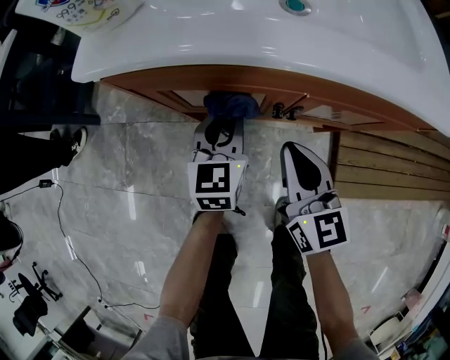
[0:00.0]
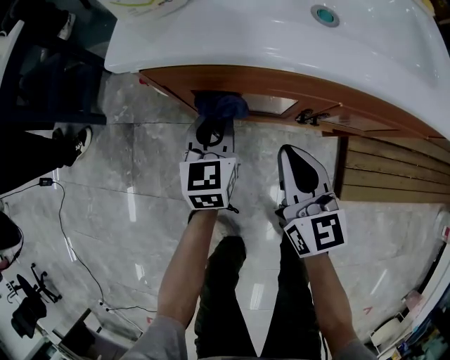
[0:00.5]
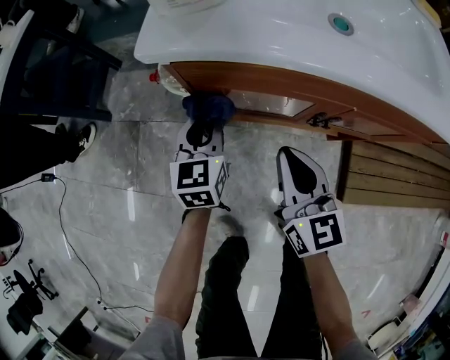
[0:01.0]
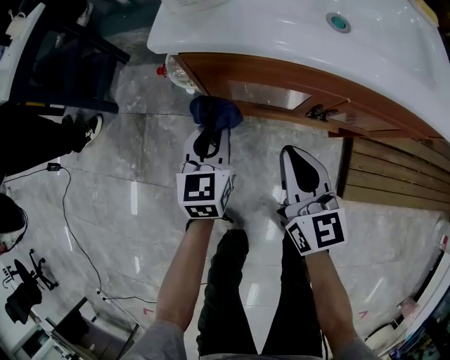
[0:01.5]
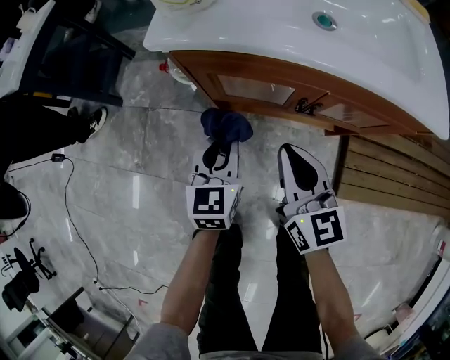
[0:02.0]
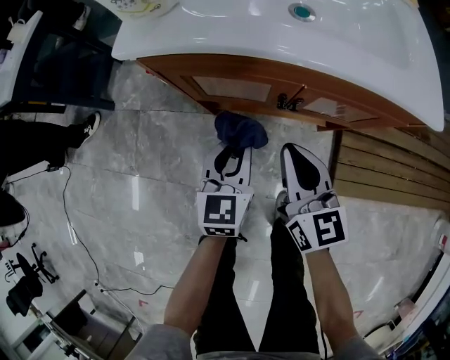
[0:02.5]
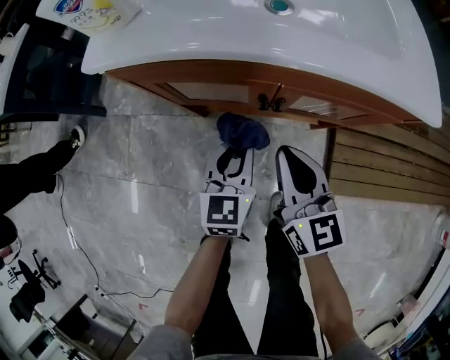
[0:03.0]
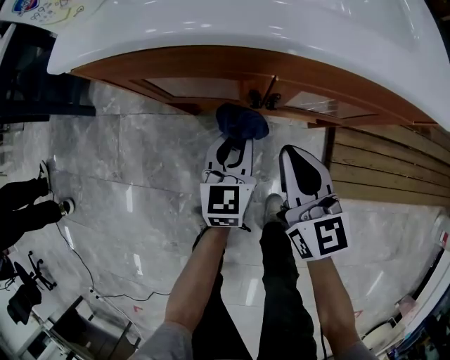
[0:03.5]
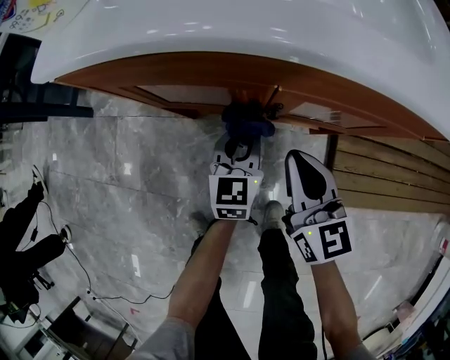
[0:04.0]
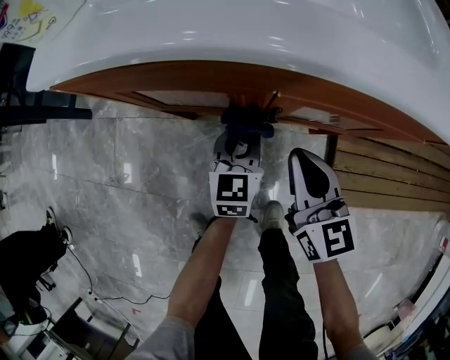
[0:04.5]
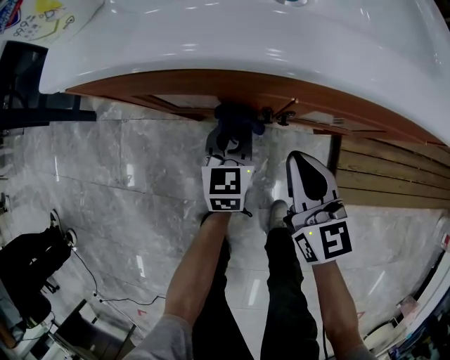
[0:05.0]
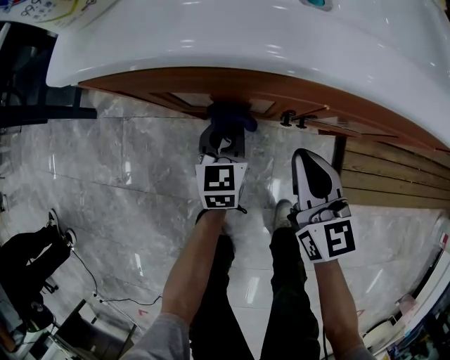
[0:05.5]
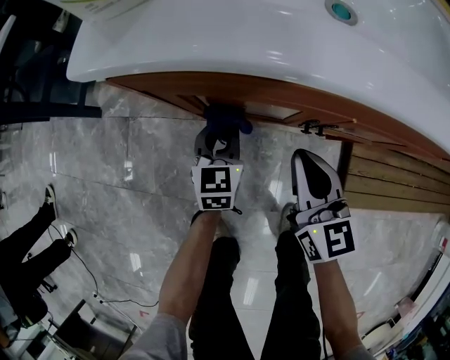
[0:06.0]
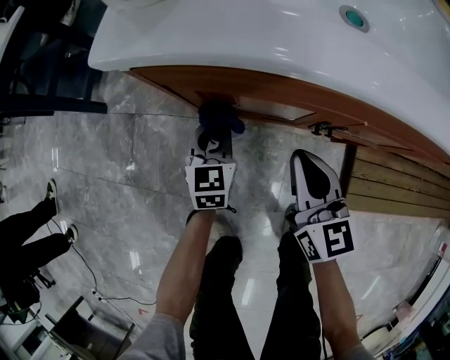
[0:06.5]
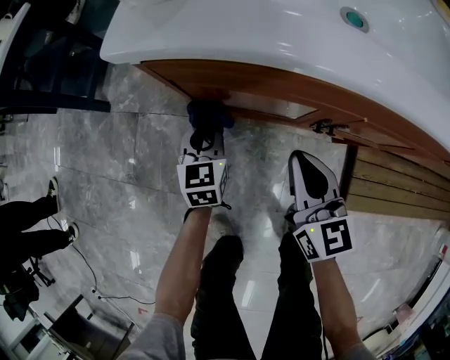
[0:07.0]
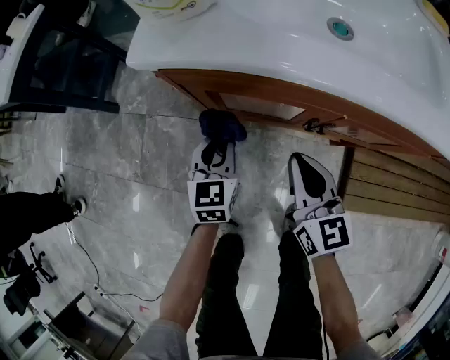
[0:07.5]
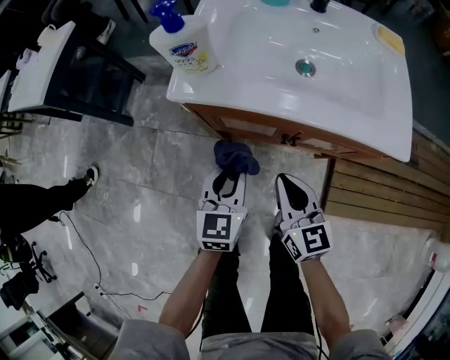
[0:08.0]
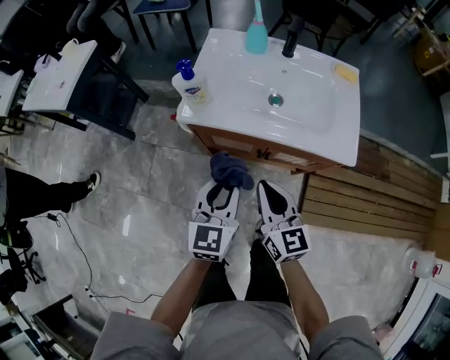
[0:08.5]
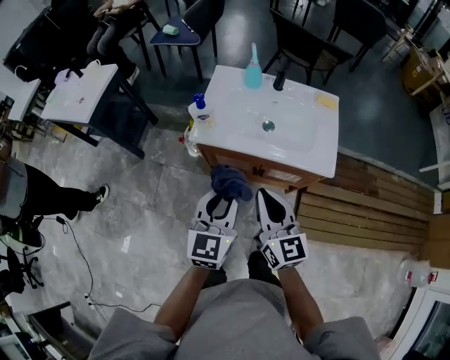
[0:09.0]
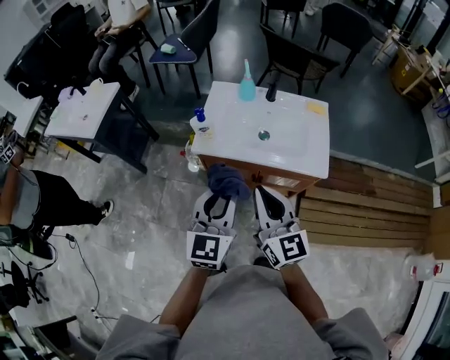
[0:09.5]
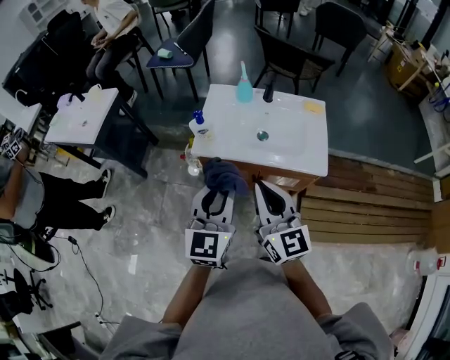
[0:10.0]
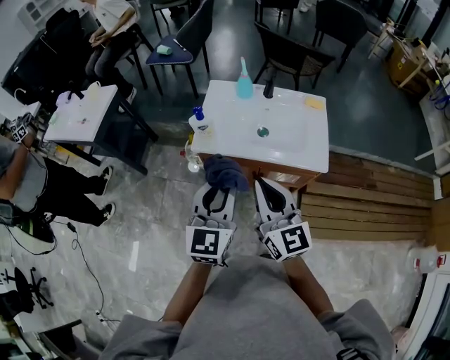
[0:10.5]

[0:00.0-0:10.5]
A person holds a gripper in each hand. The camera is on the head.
0:00.0 to 0:02.0: The right gripper shifts roughly 10 cm to the left and upward. The left gripper moves backward and to the left, about 10 cm.
0:02.0 to 0:04.0: The two grippers go some 20 cm to the right and downward.
0:04.0 to 0:06.5: The right gripper heads to the left, covering roughly 10 cm, while the left gripper moves to the left, roughly 20 cm.
0:06.5 to 0:08.5: The two grippers go roughly 35 cm upward.
0:08.5 to 0:10.5: Both grippers move upward, roughly 20 cm.

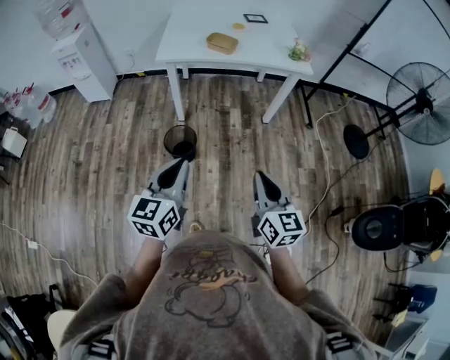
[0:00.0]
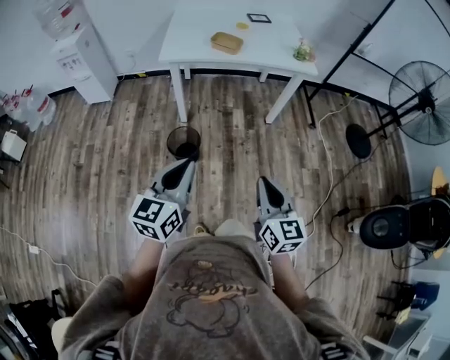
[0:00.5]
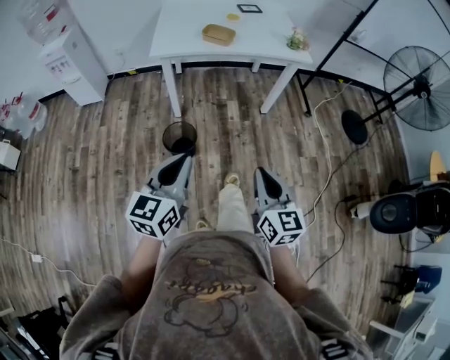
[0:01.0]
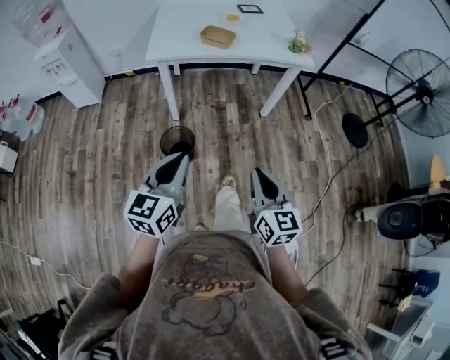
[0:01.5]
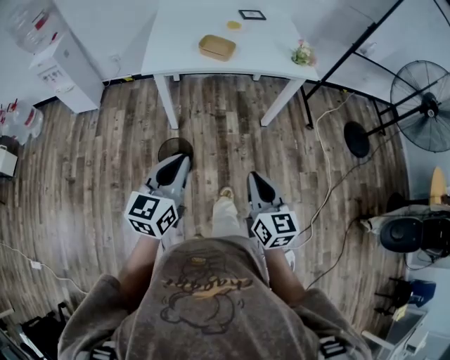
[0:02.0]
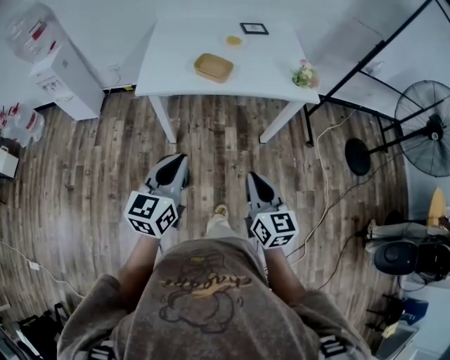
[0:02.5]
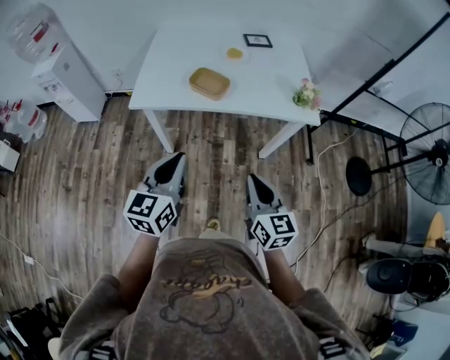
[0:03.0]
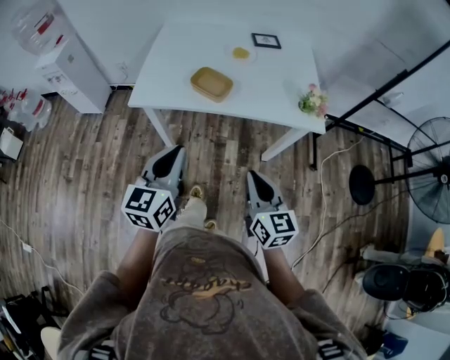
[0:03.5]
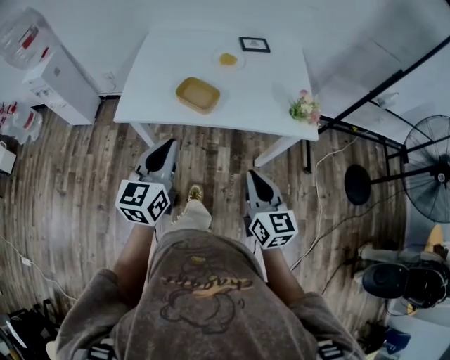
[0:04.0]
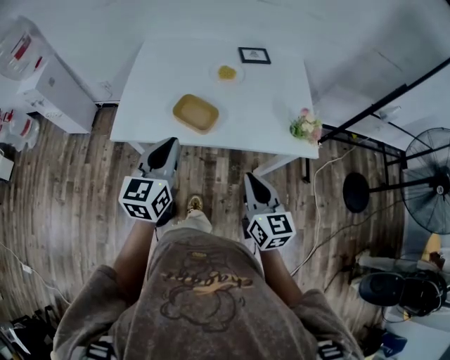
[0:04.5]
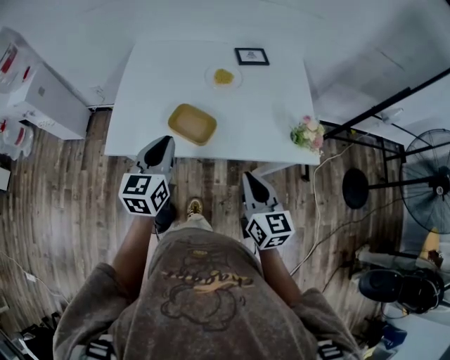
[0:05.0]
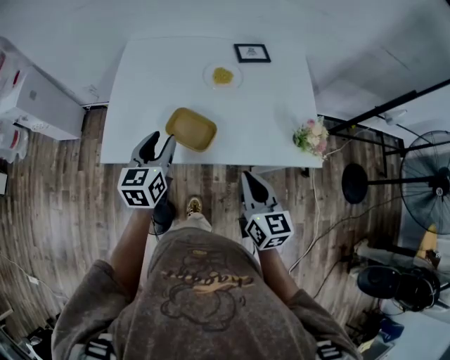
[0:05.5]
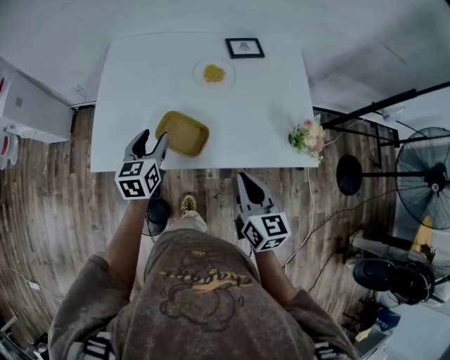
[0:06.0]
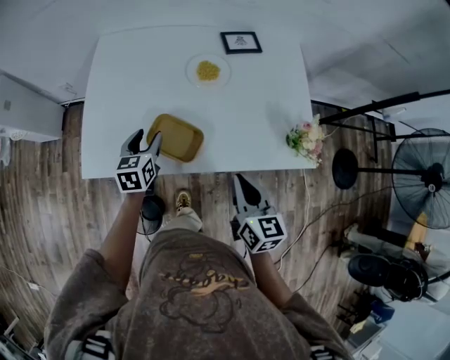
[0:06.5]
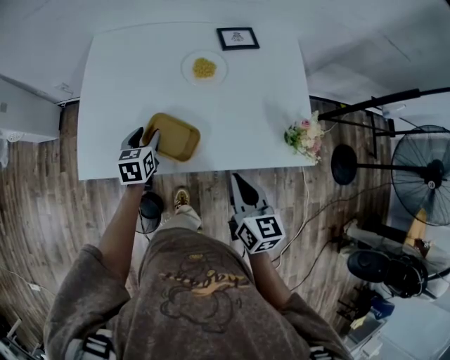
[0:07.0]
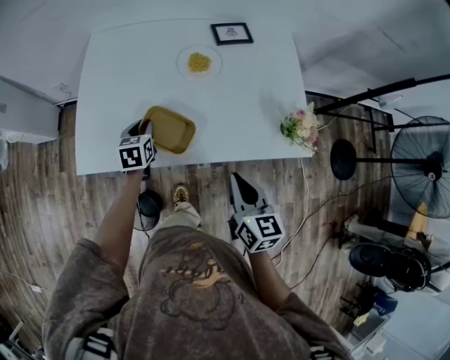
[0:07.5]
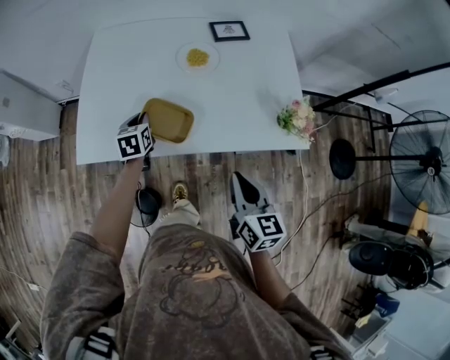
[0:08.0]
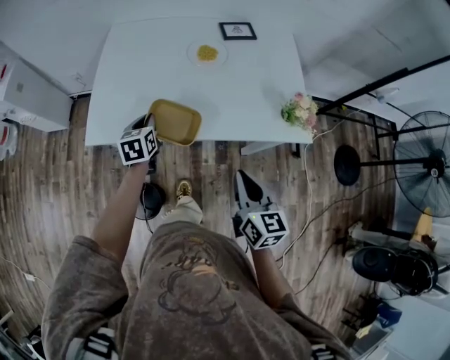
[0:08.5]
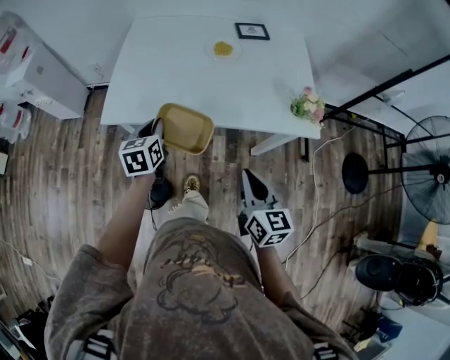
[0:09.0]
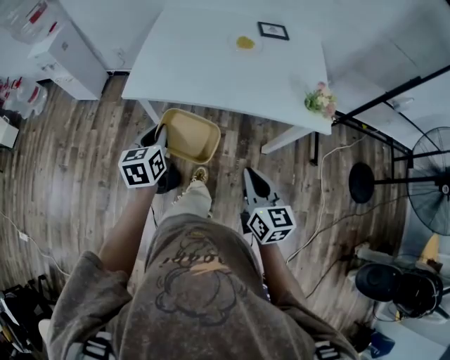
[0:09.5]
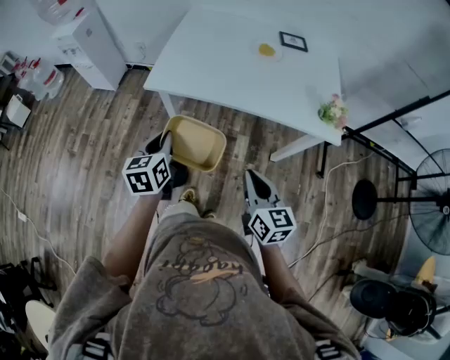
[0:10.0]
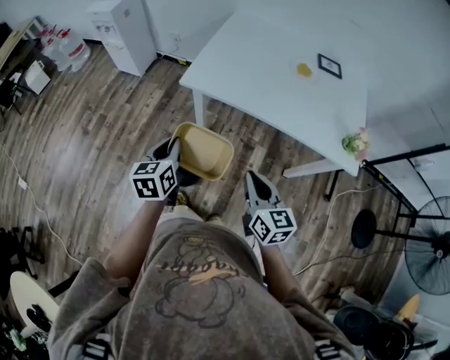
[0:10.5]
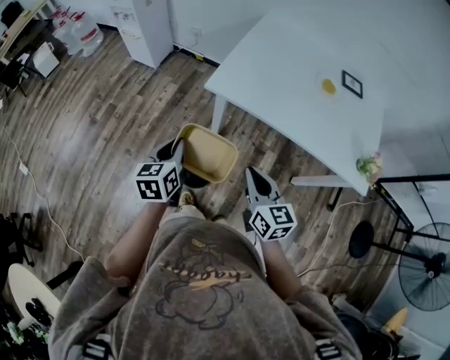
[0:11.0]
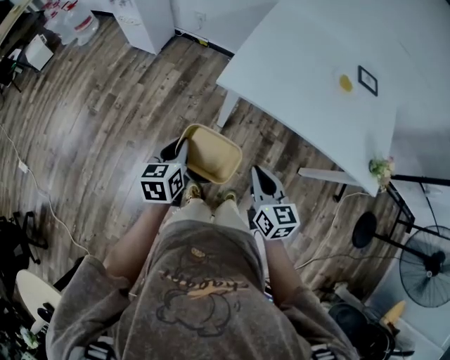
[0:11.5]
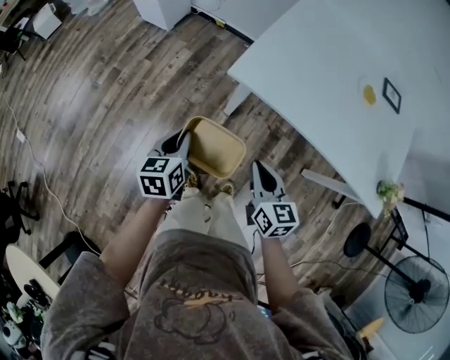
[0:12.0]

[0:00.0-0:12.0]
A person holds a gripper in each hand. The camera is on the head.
0:00.0 to 0:02.0: Both grippers move forward, roughly 15 cm.
0:02.0 to 0:04.0: Both grippers move forward, about 35 cm.
0:04.0 to 0:06.0: The left gripper goes about 35 cm forward and downward, and opens up; the right gripper travels forward by some 25 cm.
0:06.0 to 0:08.0: The left gripper moves downward, about 10 cm, and closes up; the right gripper shifts by some 5 cm.
0:08.0 to 0:10.0: The right gripper travels backward and to the left by roughly 25 cm. Meanwhile the left gripper heads backward, covering roughly 35 cm.
0:10.0 to 0:12.0: The right gripper travels to the left, forward and downward by roughly 35 cm, and swivels approximately 20 degrees; the left gripper heads to the left, downward and forward, covering roughly 25 cm.

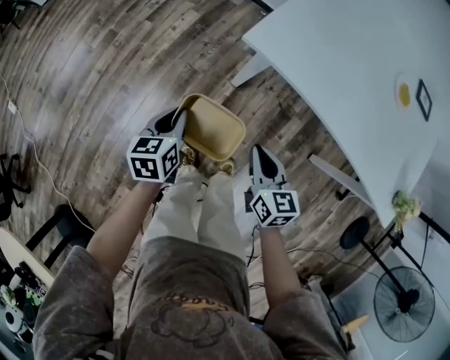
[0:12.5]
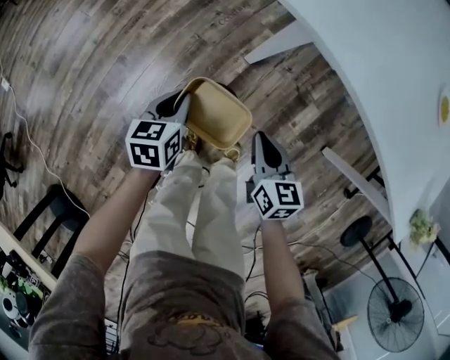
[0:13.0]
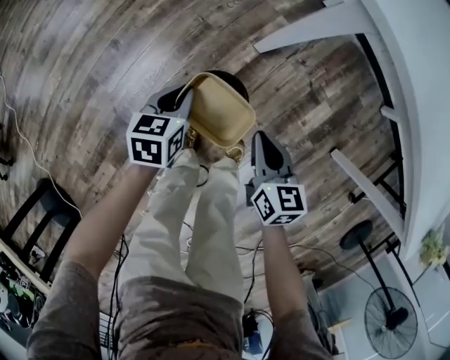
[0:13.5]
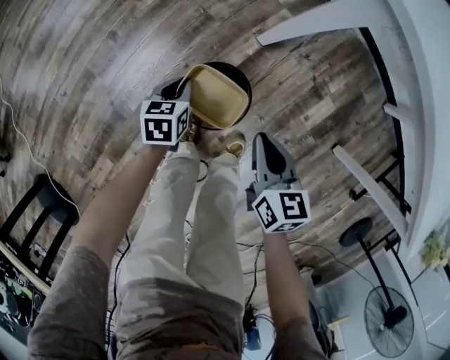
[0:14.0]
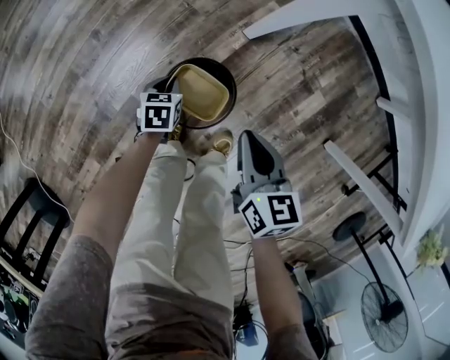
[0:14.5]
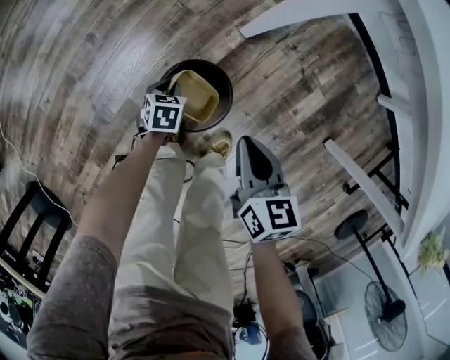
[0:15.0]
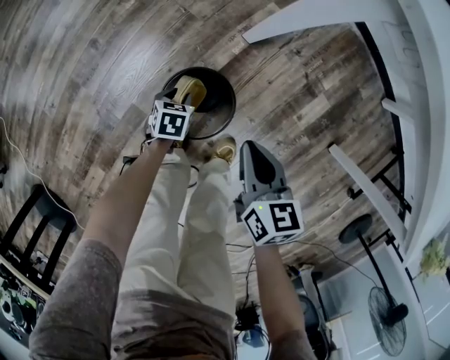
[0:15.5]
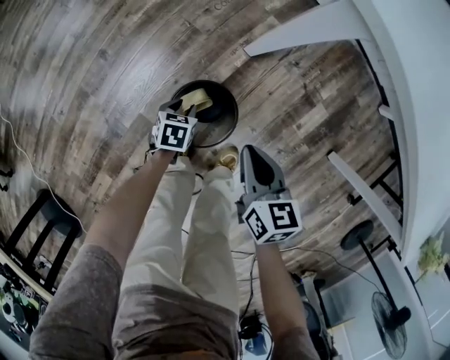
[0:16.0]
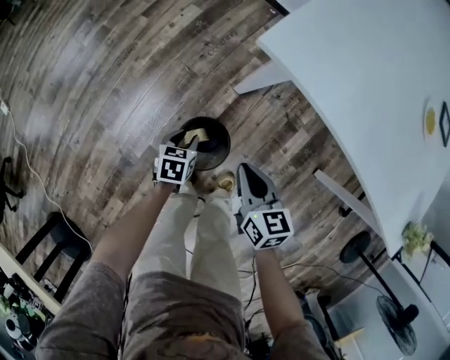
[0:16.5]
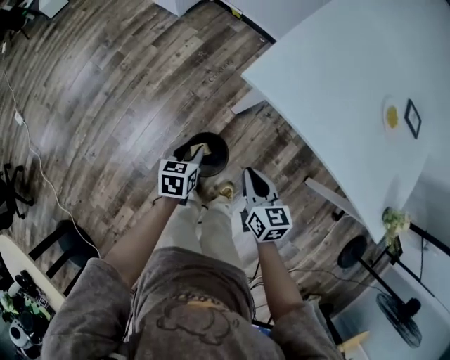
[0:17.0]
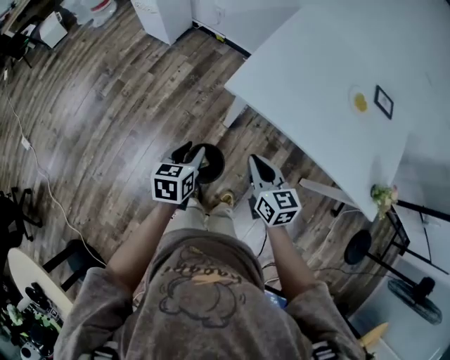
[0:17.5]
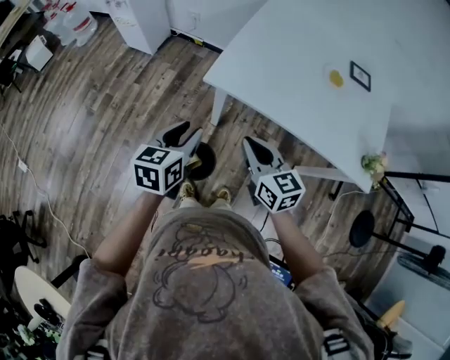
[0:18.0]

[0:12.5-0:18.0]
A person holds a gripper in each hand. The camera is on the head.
0:12.5 to 0:14.5: The right gripper heads downward, covering about 25 cm; the left gripper goes approximately 40 cm downward, and changes its angle by about 20 degrees.
0:14.5 to 0:16.0: The left gripper opens its fingers.
0:16.0 to 0:18.0: Both grippers move upward, about 60 cm. The right gripper swivels roughly 20 degrees. Meanwhile the left gripper tips its fingers upward by approximately 40 degrees.
